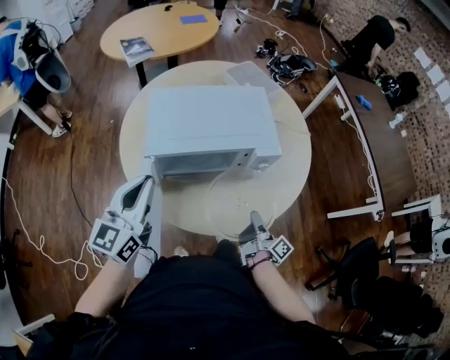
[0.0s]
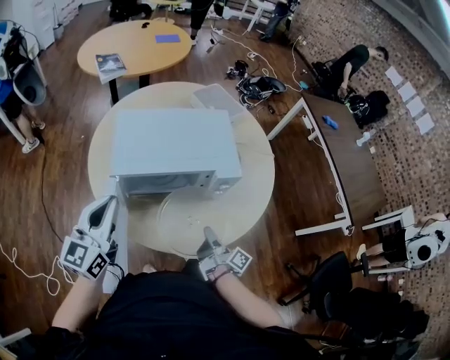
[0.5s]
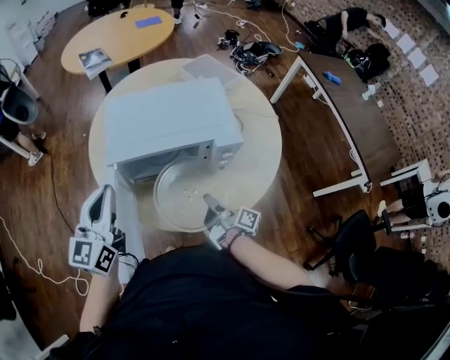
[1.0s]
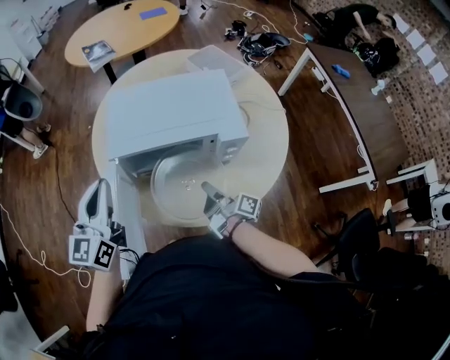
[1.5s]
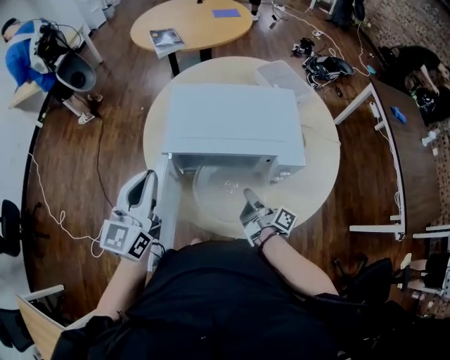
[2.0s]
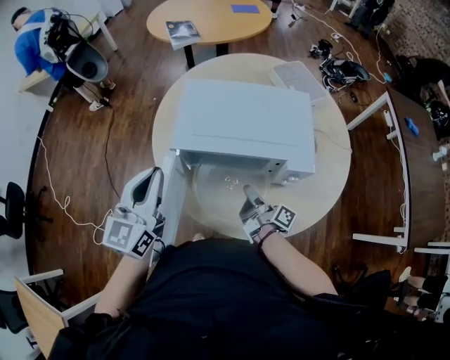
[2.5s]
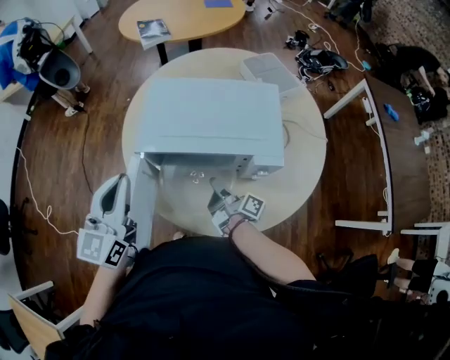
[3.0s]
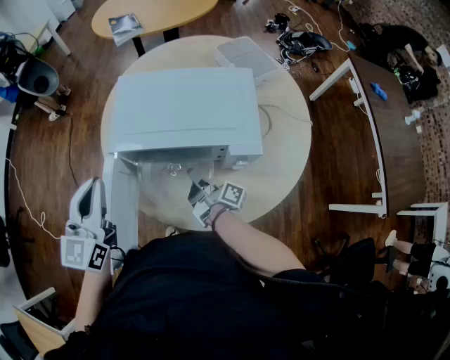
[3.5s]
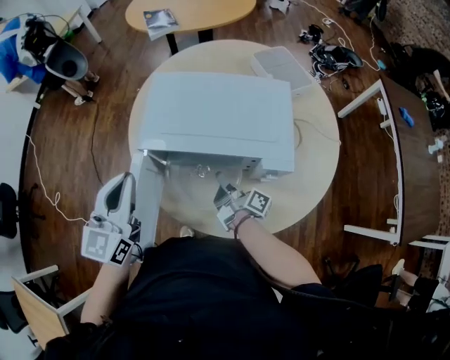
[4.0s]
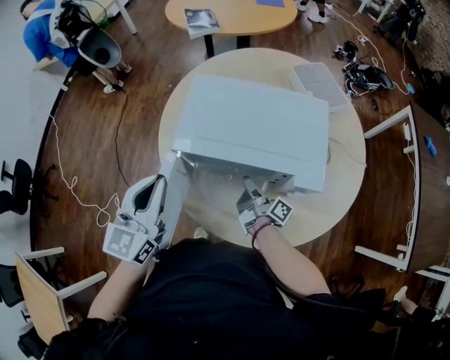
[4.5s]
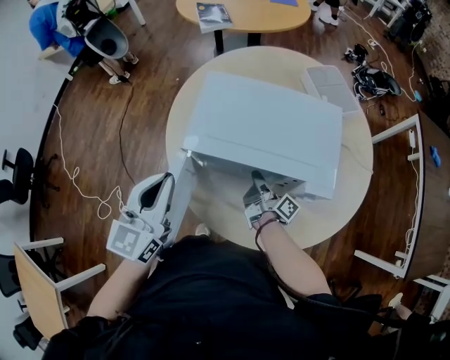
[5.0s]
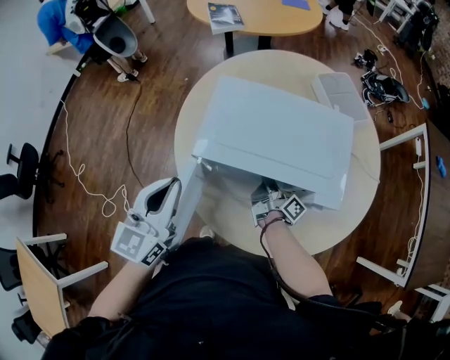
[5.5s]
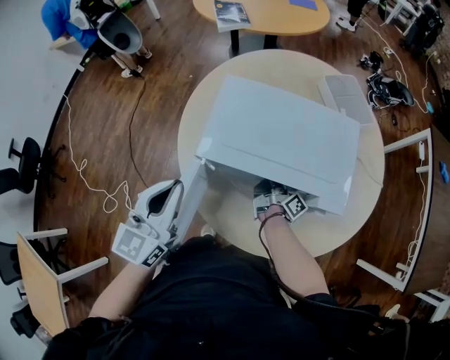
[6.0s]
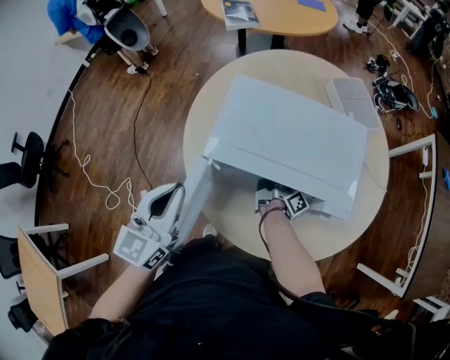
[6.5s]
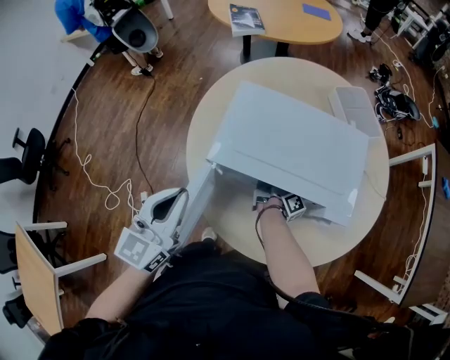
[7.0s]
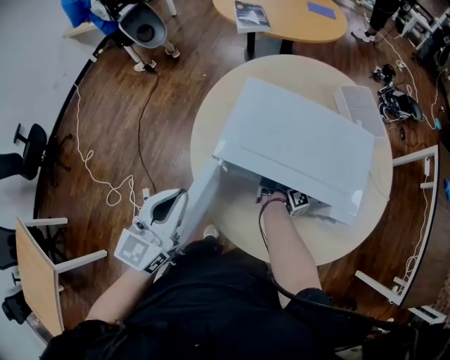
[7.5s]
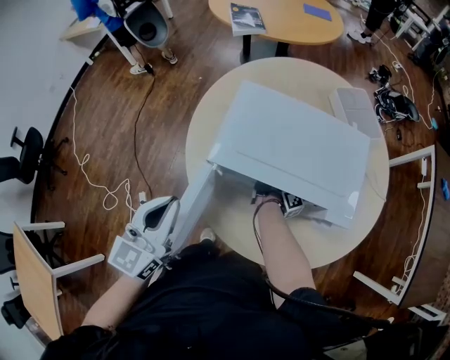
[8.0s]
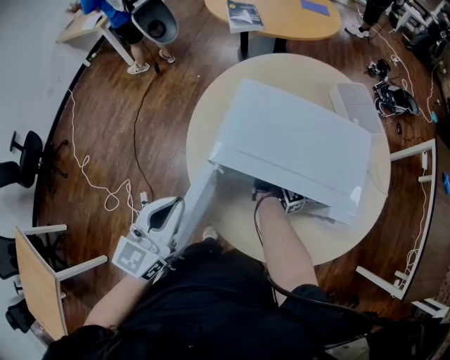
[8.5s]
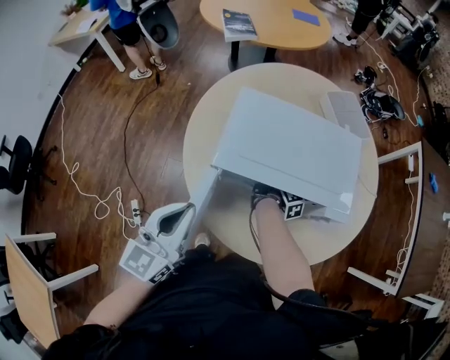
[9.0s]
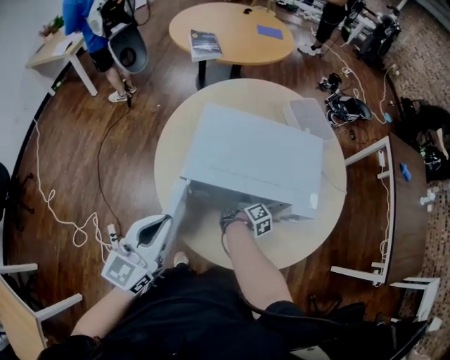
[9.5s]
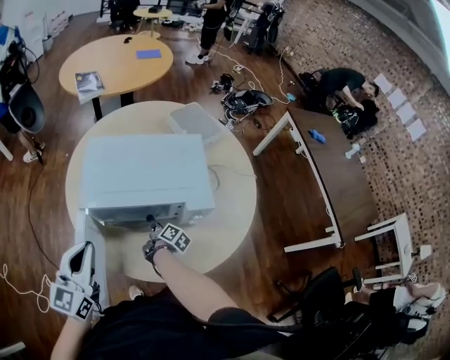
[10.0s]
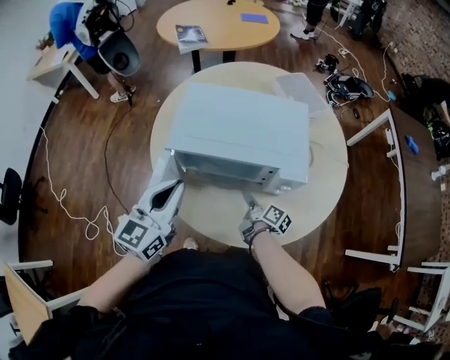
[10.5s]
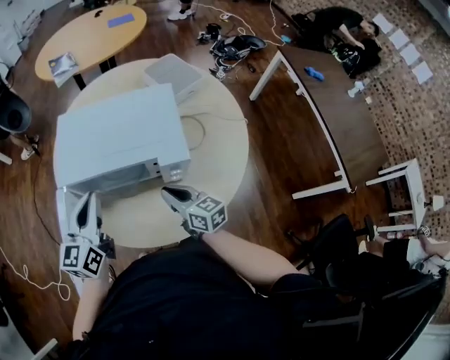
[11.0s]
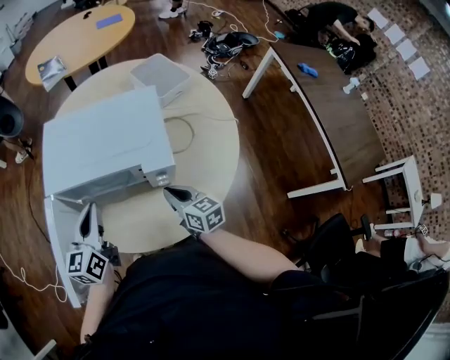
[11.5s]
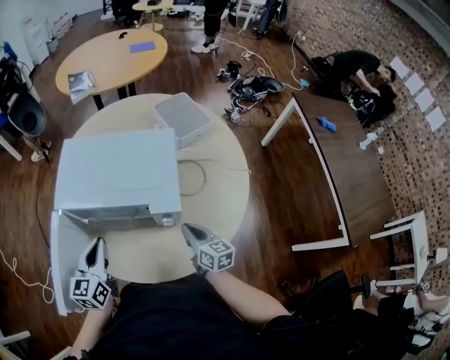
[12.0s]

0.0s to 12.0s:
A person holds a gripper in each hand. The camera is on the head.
0.0s to 2.0s: The right gripper moves forward and to the left, approximately 15 cm, and swivels roughly 30 degrees.
2.0s to 4.0s: The right gripper shifts approximately 5 cm forward.
4.0s to 6.0s: The right gripper shifts approximately 10 cm forward.
6.0s to 8.0s: The right gripper moves forward, approximately 5 cm.
8.0s to 10.0s: The right gripper travels backward by some 10 cm, rotates some 30 degrees, and opens up; the left gripper heads to the right, covering some 5 cm.
10.0s to 12.0s: The left gripper travels to the right and downward by about 15 cm. The right gripper heads to the right, upward and backward, covering about 25 cm, twists approximately 50 degrees counterclockwise, seen from behind, and closes.

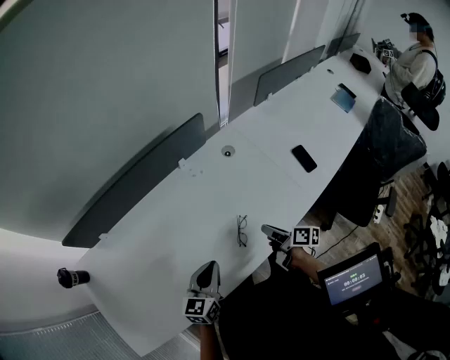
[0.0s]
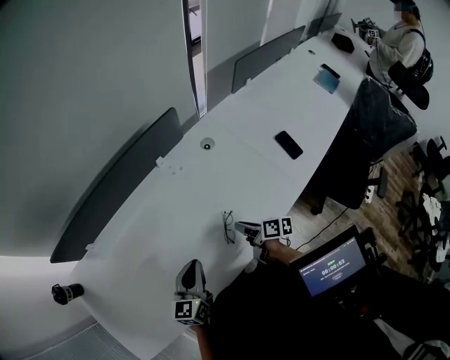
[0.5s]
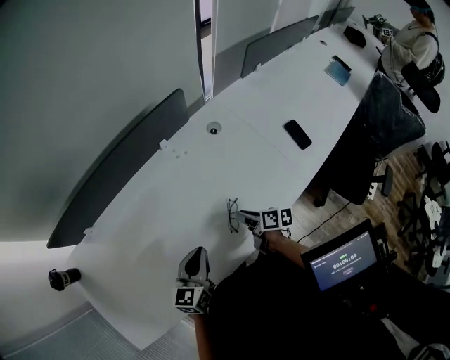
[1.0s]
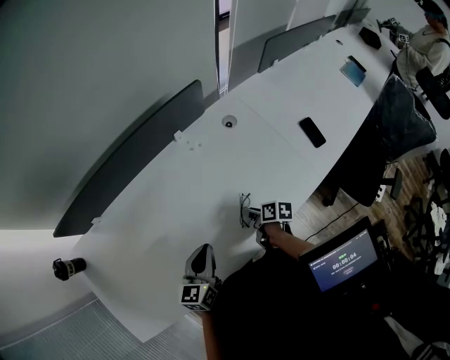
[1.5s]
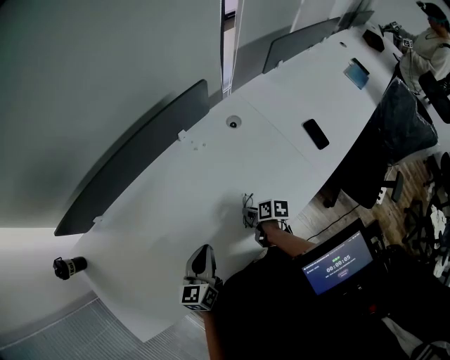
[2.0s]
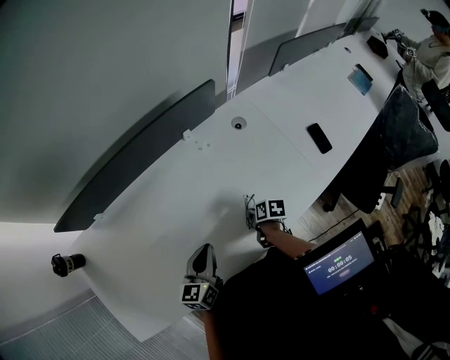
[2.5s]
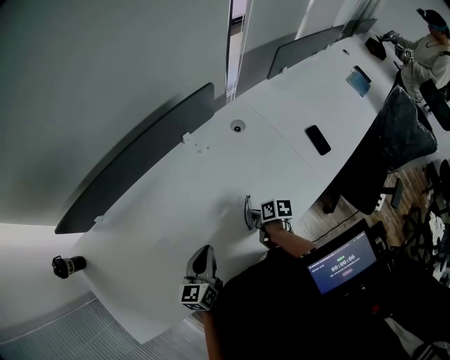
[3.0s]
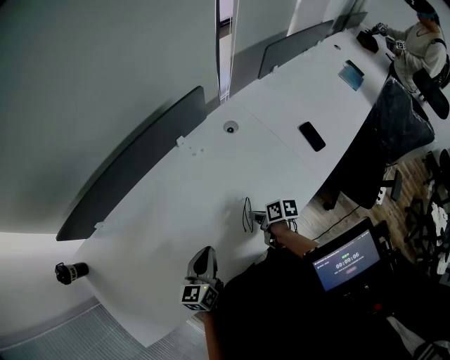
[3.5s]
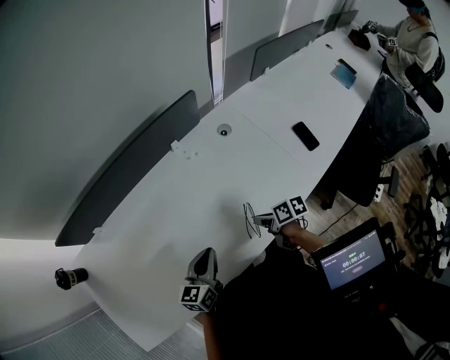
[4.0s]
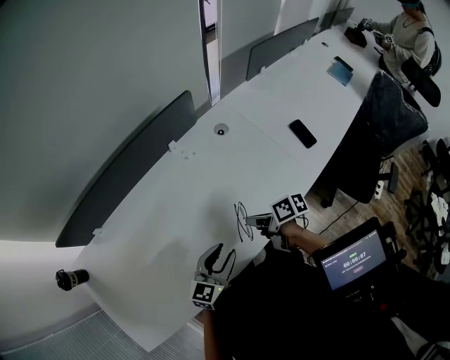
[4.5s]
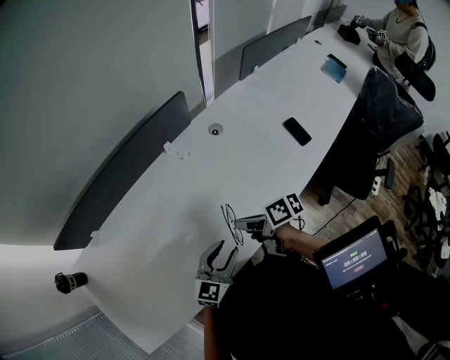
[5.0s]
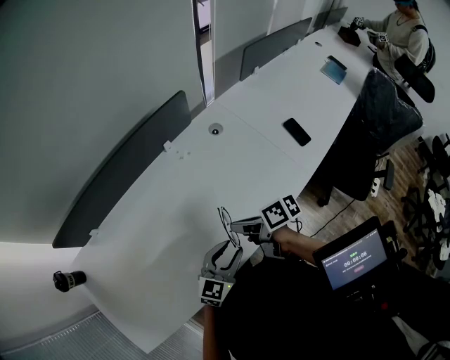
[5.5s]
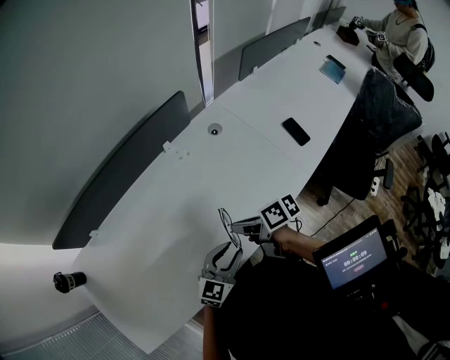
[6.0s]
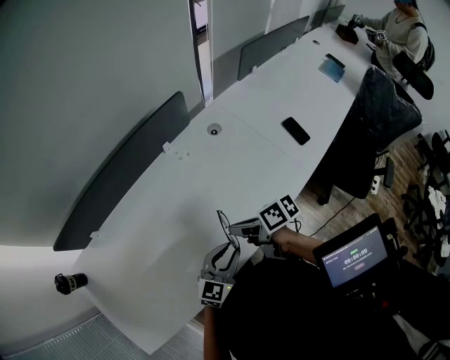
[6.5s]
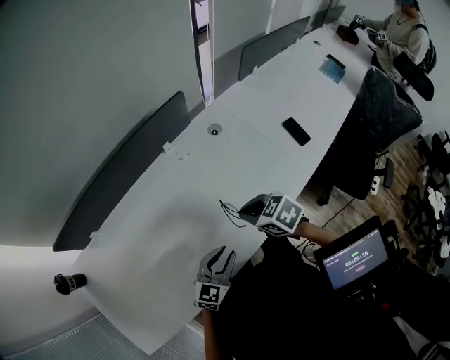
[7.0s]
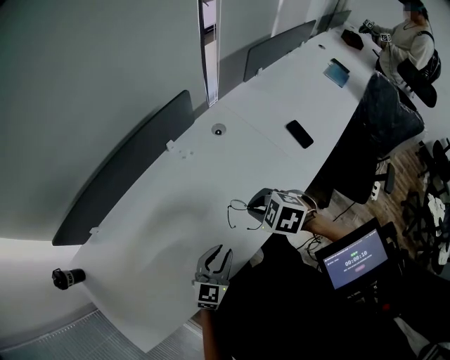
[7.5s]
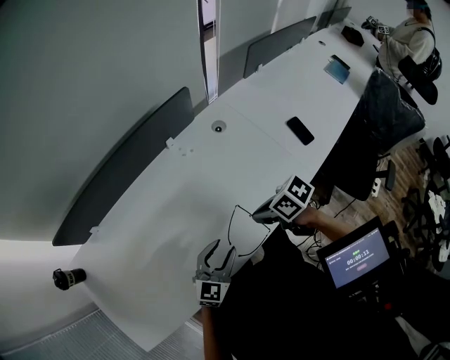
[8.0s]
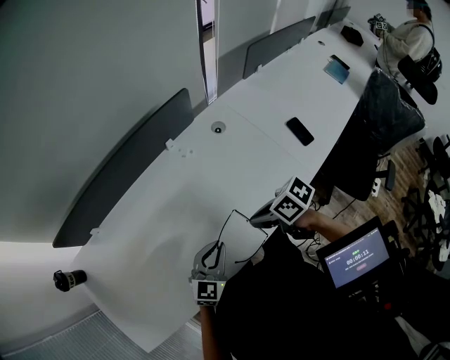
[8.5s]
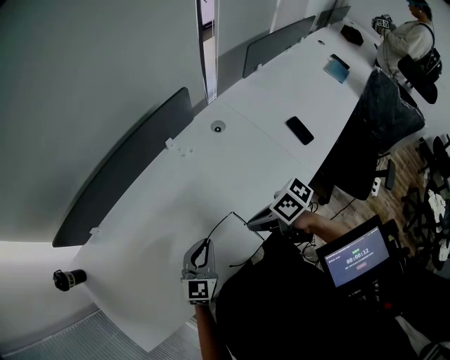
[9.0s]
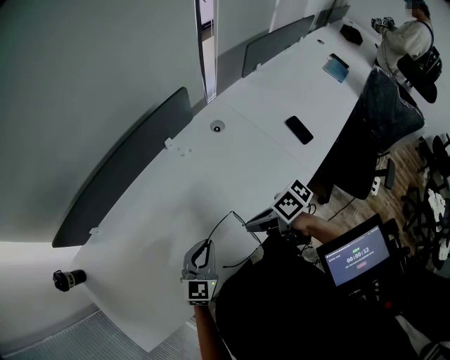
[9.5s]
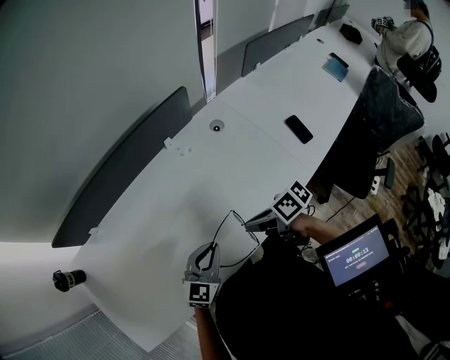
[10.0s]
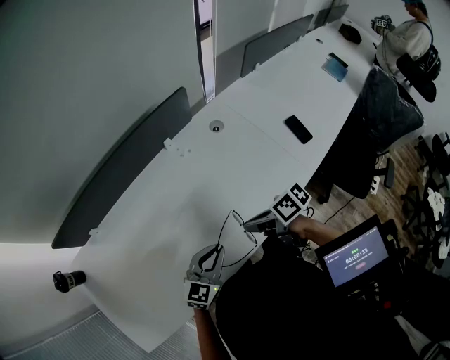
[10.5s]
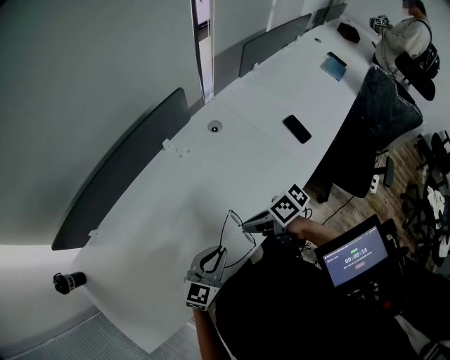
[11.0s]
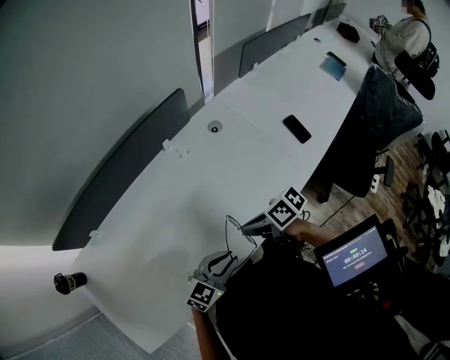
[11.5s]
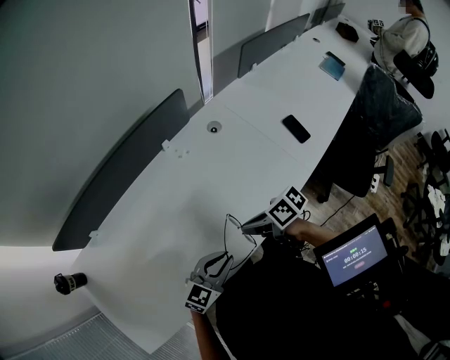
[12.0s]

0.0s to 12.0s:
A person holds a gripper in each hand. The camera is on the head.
0.0s to 2.0s: The left gripper ends up some 5 cm from where it was.
4.0s to 6.0s: The left gripper shifts by approximately 10 cm, turns by approximately 30 degrees, and opens.
8.0s to 10.0s: The left gripper closes its fingers.
10.0s to 12.0s: The left gripper moves approximately 5 cm.

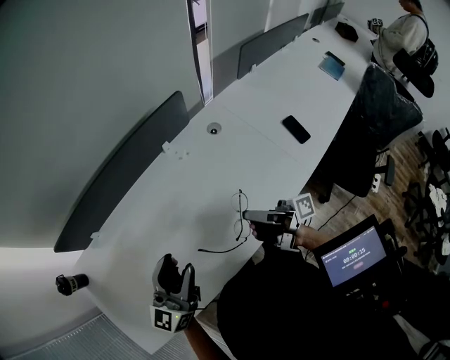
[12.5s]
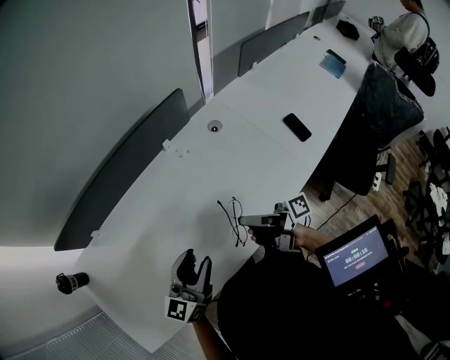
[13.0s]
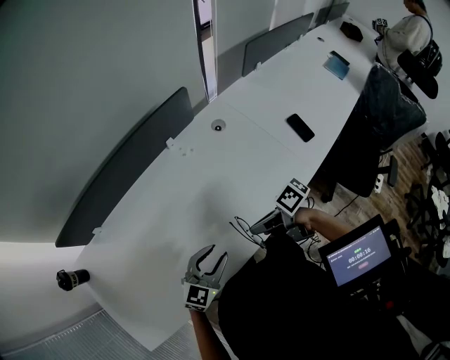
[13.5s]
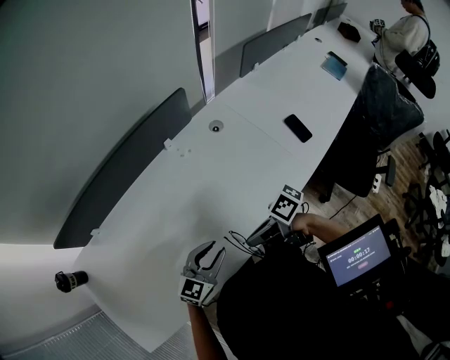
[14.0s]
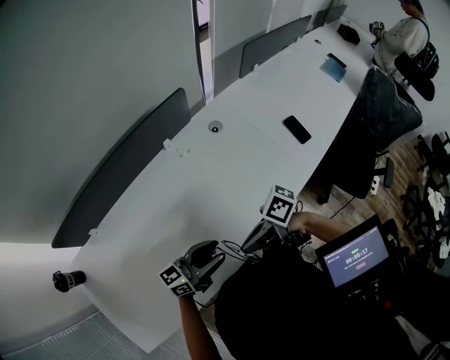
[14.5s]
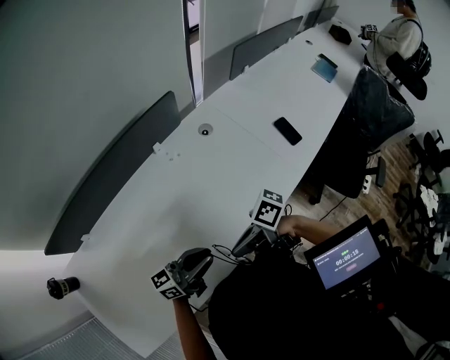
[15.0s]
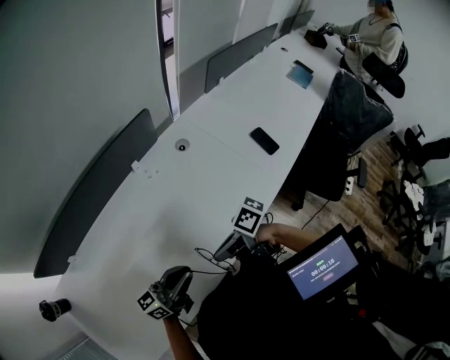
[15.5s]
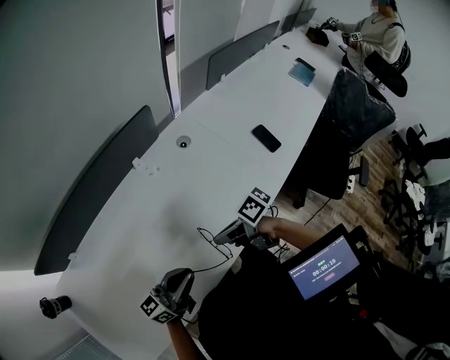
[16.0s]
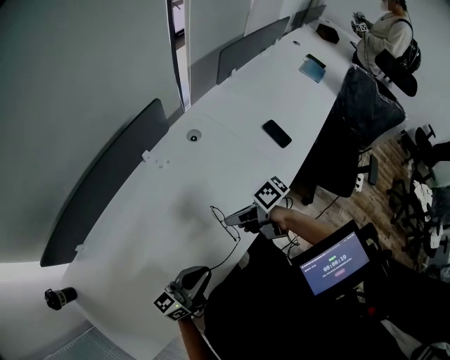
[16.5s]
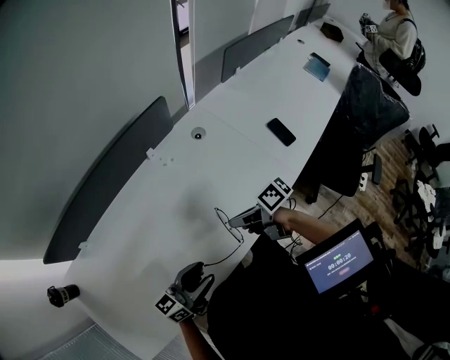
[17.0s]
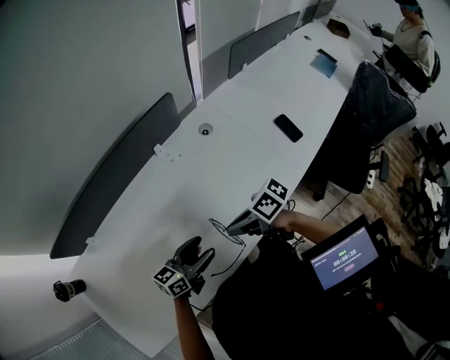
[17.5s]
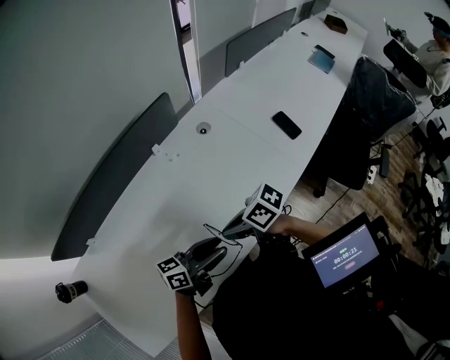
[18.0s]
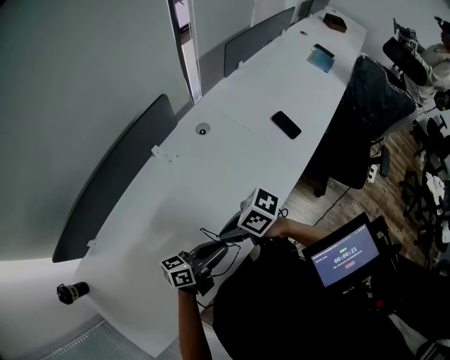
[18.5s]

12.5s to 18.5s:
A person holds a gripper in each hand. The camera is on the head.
12.5s to 14.5s: The left gripper shifts approximately 15 cm downward, and turns by approximately 50 degrees.
14.5s to 16.5s: The left gripper closes.
16.5s to 18.5s: The left gripper moves approximately 5 cm, rotates approximately 30 degrees, and opens, then closes once more.
